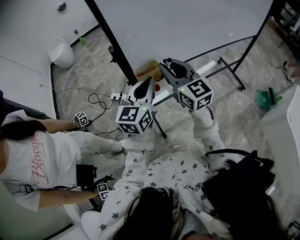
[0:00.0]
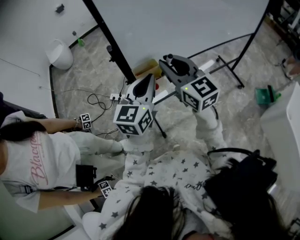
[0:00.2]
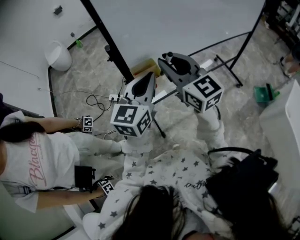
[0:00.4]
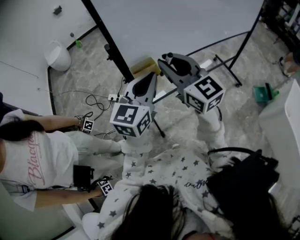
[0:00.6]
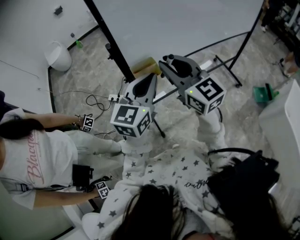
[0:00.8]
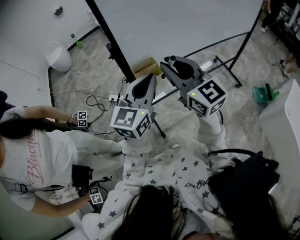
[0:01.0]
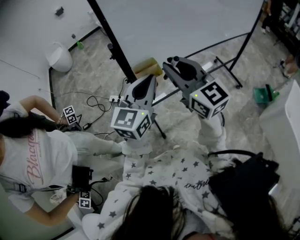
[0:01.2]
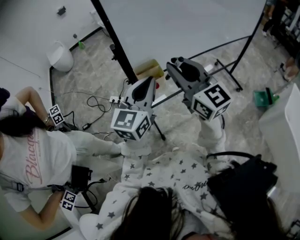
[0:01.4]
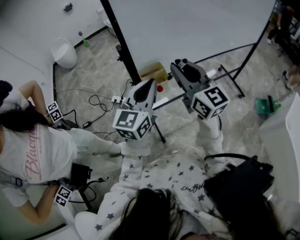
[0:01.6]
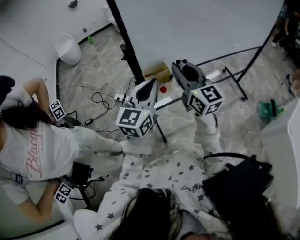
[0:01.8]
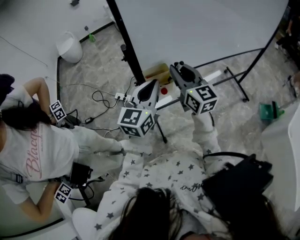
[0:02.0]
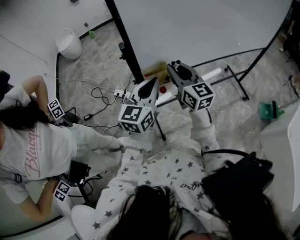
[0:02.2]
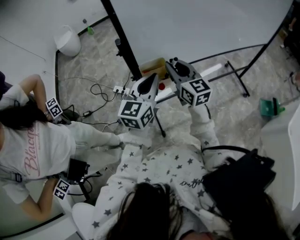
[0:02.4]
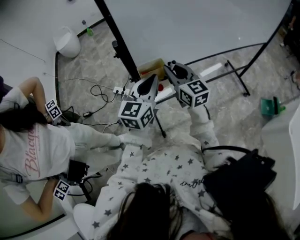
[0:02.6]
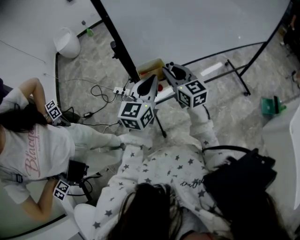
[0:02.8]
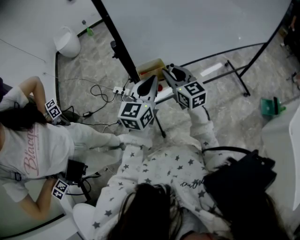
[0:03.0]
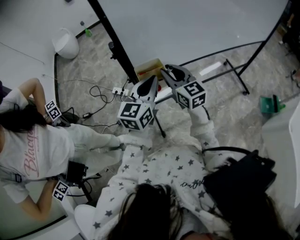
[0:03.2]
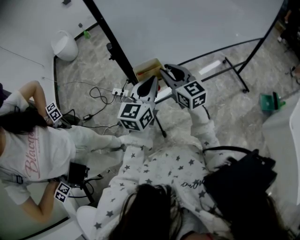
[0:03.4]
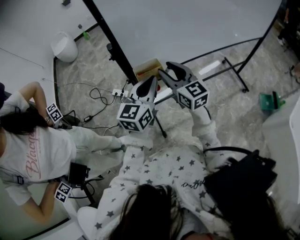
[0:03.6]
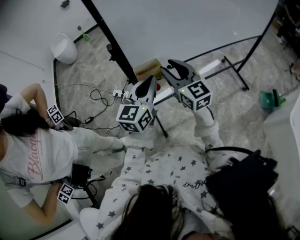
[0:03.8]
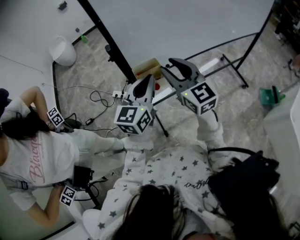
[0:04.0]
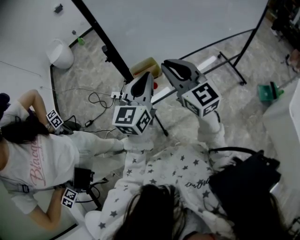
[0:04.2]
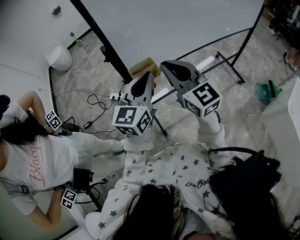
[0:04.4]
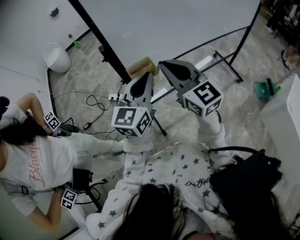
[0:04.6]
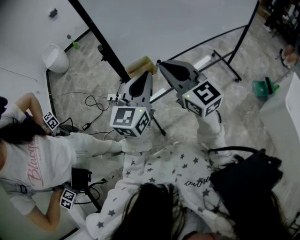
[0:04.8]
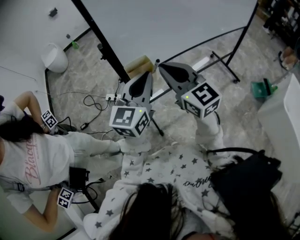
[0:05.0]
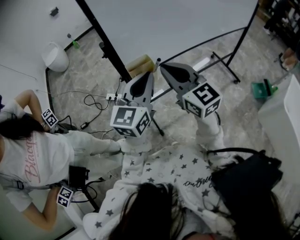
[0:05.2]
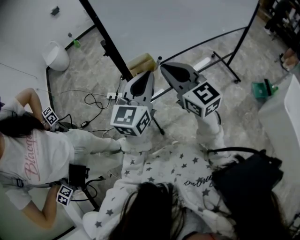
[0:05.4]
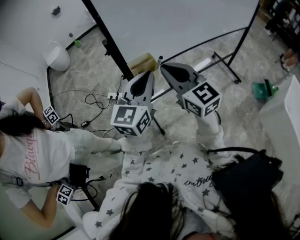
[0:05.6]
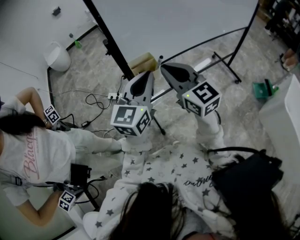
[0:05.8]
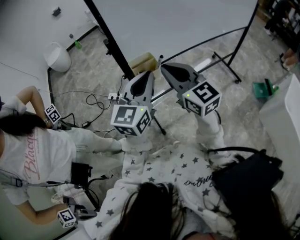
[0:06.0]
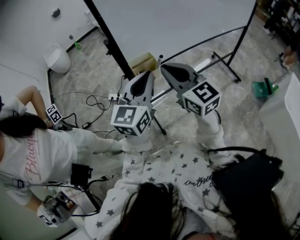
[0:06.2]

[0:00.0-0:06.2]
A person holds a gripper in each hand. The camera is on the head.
0:00.0 to 0:01.6: The right gripper travels upward by some 5 cm.
0:01.6 to 0:03.2: The left gripper travels downward by roughly 5 cm. Meanwhile the right gripper is displaced downward by some 15 cm.
0:03.2 to 0:04.6: The left gripper shifts some 5 cm upward. The right gripper shifts about 15 cm upward and backward.
0:04.6 to 0:06.2: The grippers stay close to where they were, moving slightly.

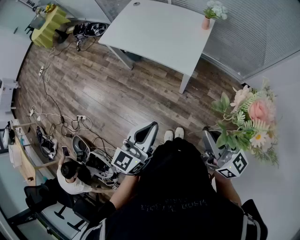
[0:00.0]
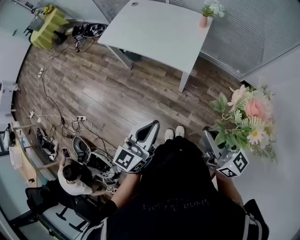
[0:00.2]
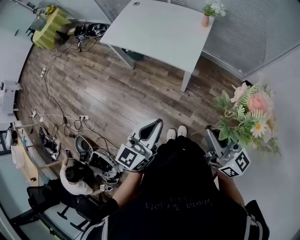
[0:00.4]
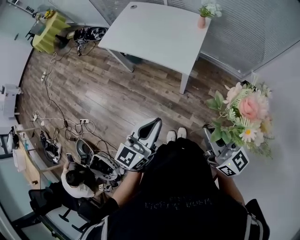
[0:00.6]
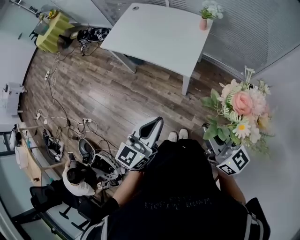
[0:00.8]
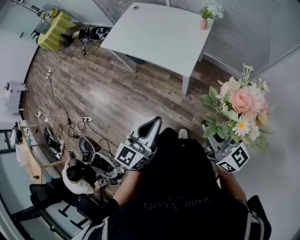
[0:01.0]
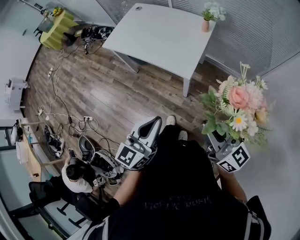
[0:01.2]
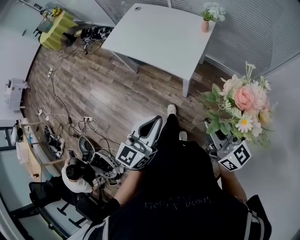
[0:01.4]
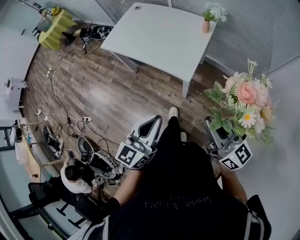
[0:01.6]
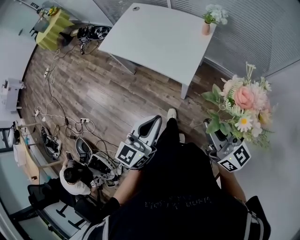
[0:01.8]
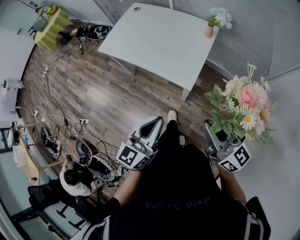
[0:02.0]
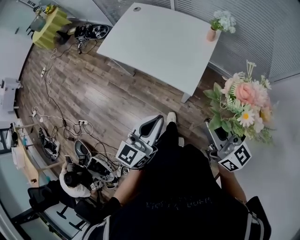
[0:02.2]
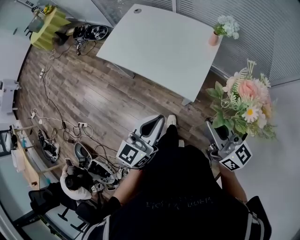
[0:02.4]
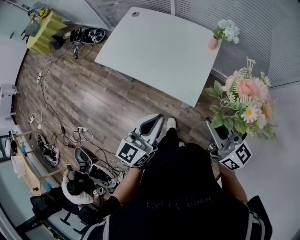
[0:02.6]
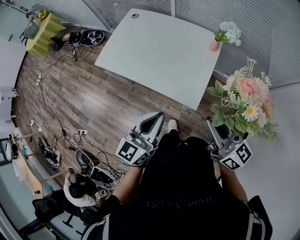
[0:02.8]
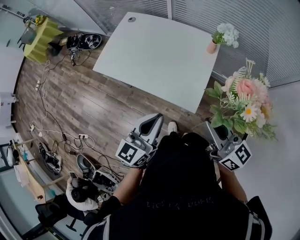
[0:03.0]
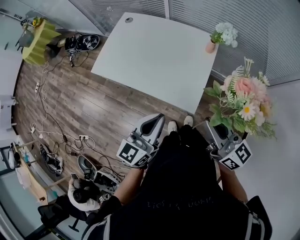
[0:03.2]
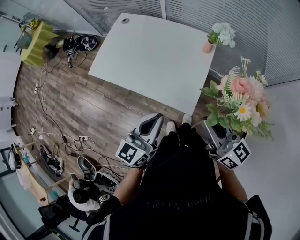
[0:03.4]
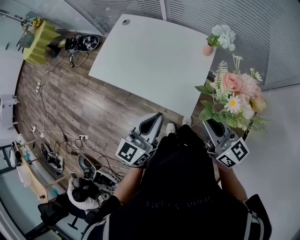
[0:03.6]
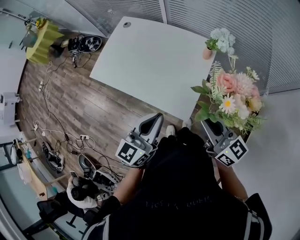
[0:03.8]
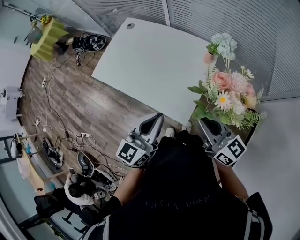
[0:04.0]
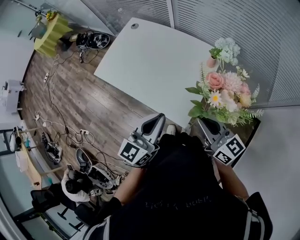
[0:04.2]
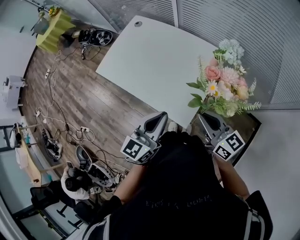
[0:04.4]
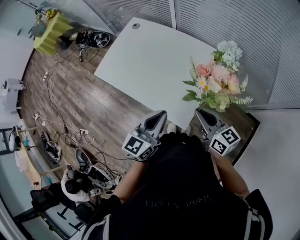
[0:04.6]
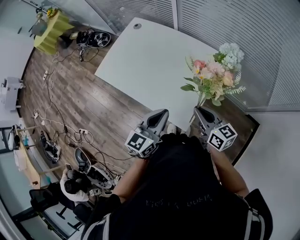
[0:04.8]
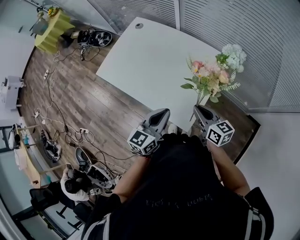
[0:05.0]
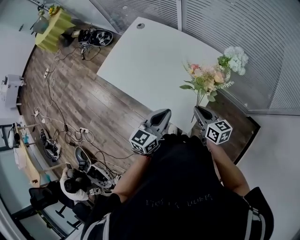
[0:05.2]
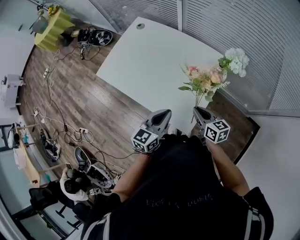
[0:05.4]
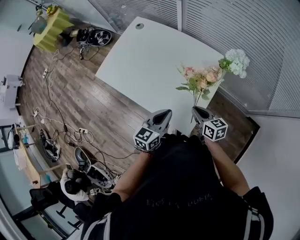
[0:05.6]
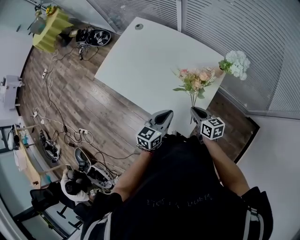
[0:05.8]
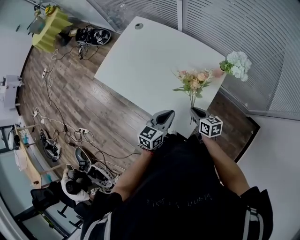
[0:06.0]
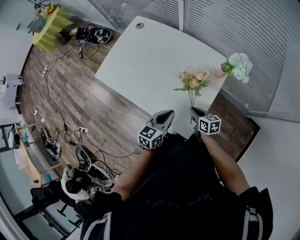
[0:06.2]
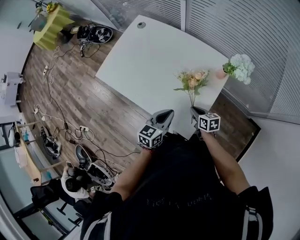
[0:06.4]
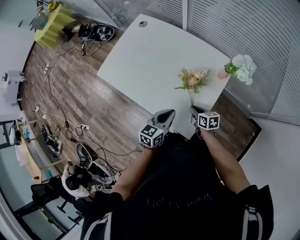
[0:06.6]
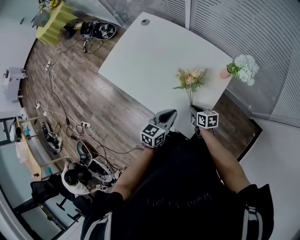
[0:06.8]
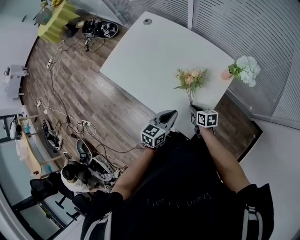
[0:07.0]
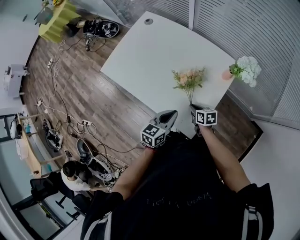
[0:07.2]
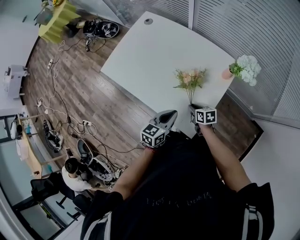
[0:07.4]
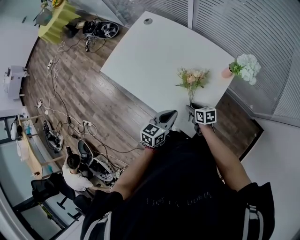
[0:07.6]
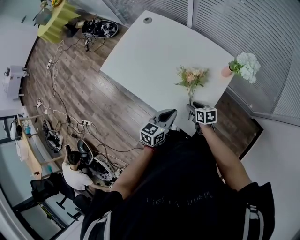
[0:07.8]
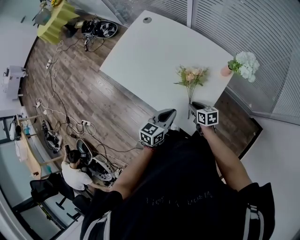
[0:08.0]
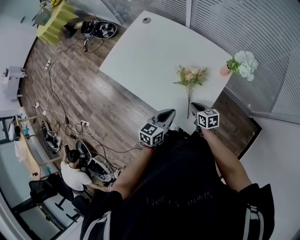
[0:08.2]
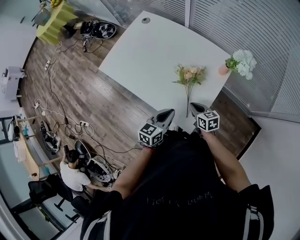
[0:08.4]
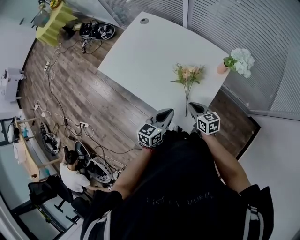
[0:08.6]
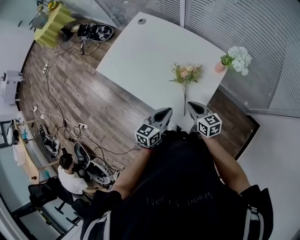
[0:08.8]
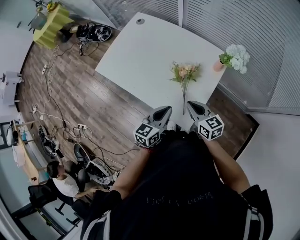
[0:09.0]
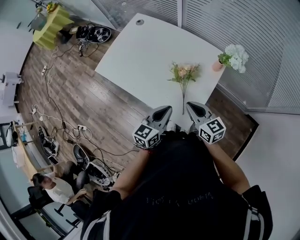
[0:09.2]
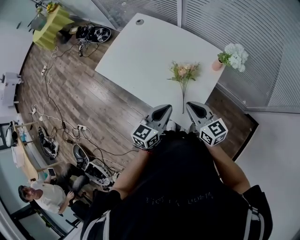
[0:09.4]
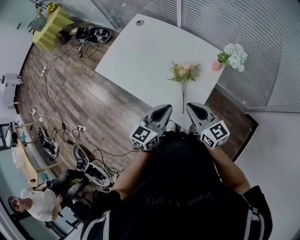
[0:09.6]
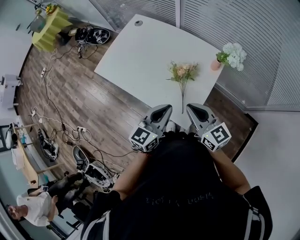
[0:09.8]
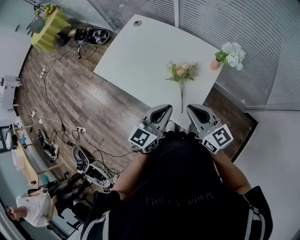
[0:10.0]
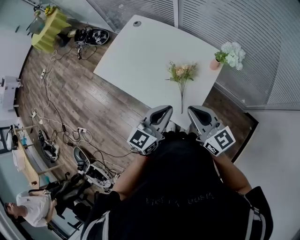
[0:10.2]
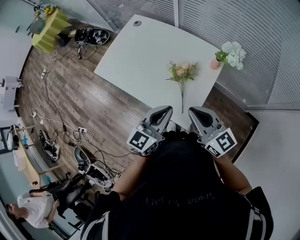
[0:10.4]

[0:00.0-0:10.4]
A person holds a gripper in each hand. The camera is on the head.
0:00.0 to 0:01.4: The two grippers go approximately 5 cm to the right.
0:01.4 to 0:03.0: Both grippers travel together forward, approximately 25 cm.
0:03.0 to 0:04.4: The left gripper shifts approximately 10 cm to the right and forward; the right gripper is displaced forward, downward and to the right by approximately 15 cm.
0:04.4 to 0:06.0: The left gripper moves downward and forward, about 20 cm, while the right gripper shifts roughly 25 cm downward, and changes its angle by roughly 30 degrees.
0:06.0 to 0:07.4: The right gripper goes approximately 10 cm downward.
0:07.4 to 0:09.0: The right gripper goes some 20 cm upward, turns by approximately 30 degrees, and opens, then closes once more; the left gripper moves approximately 5 cm.
0:09.0 to 0:10.4: The two grippers go some 15 cm upward. The right gripper changes its angle by about 20 degrees.

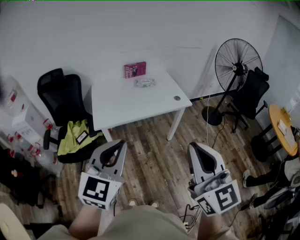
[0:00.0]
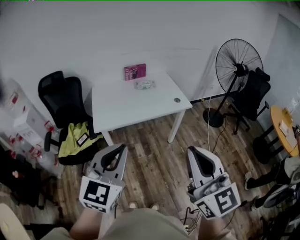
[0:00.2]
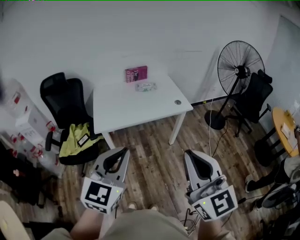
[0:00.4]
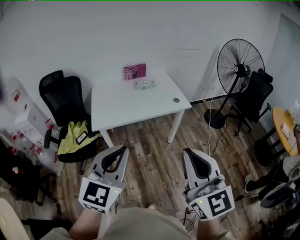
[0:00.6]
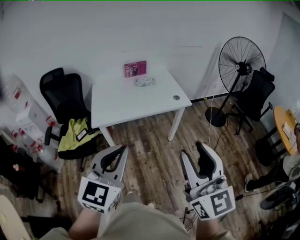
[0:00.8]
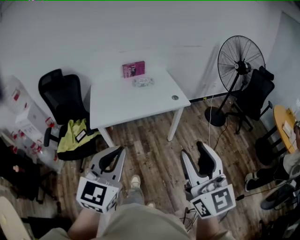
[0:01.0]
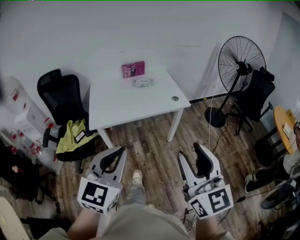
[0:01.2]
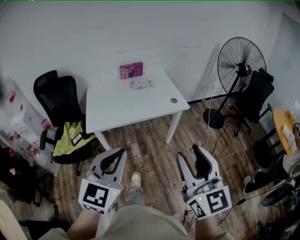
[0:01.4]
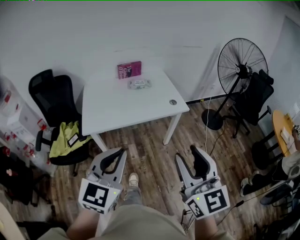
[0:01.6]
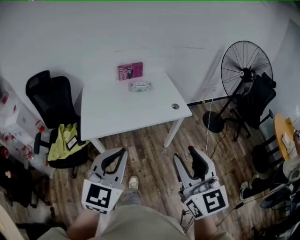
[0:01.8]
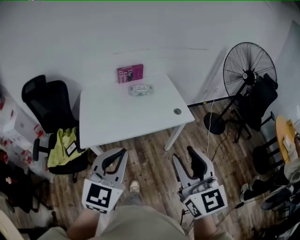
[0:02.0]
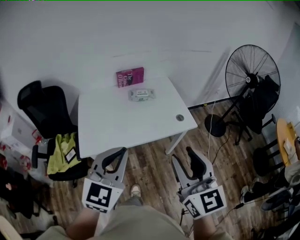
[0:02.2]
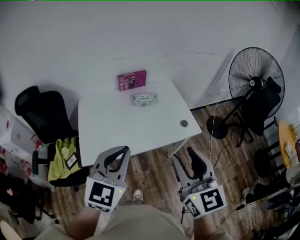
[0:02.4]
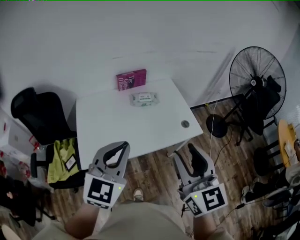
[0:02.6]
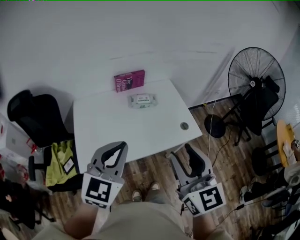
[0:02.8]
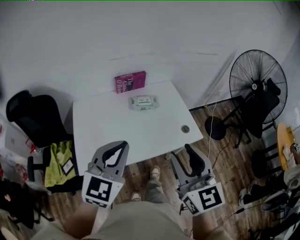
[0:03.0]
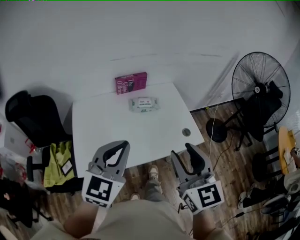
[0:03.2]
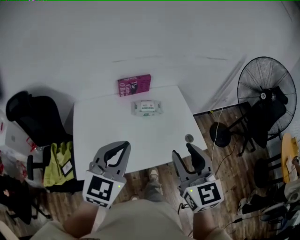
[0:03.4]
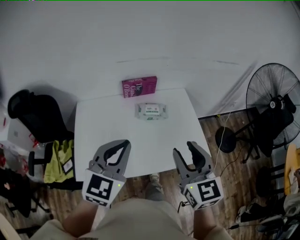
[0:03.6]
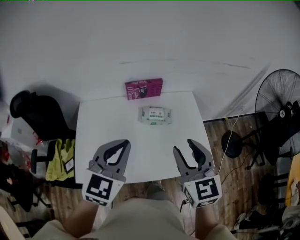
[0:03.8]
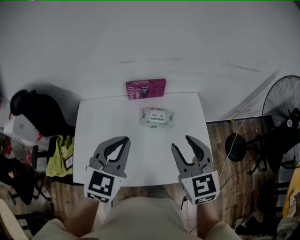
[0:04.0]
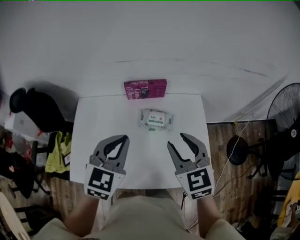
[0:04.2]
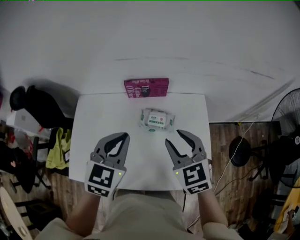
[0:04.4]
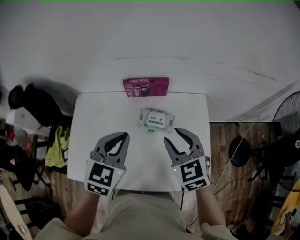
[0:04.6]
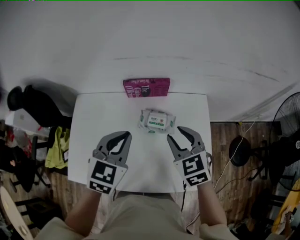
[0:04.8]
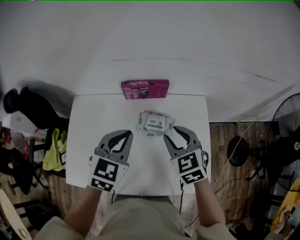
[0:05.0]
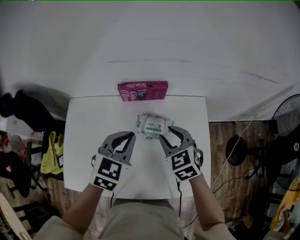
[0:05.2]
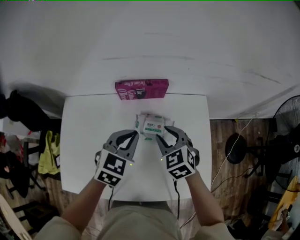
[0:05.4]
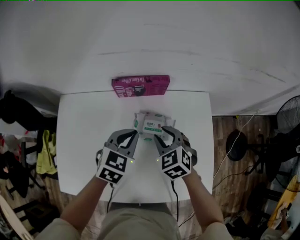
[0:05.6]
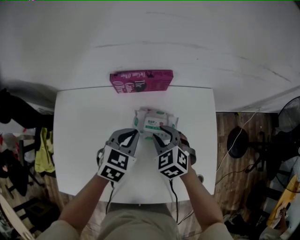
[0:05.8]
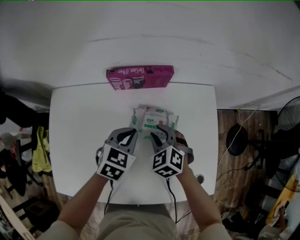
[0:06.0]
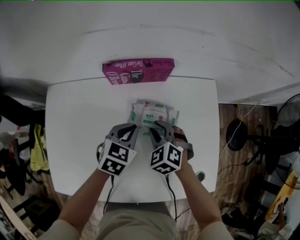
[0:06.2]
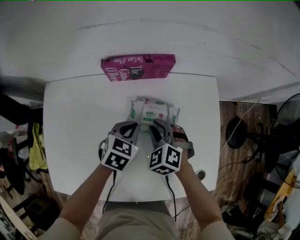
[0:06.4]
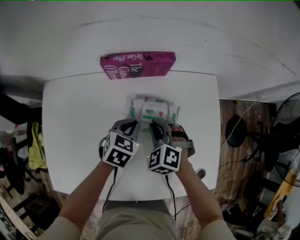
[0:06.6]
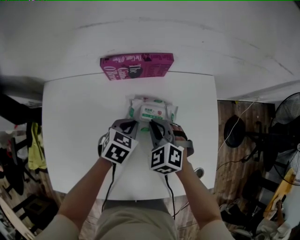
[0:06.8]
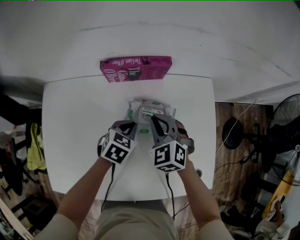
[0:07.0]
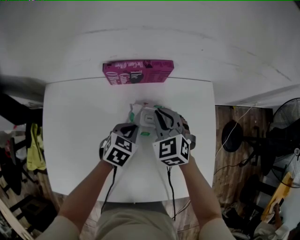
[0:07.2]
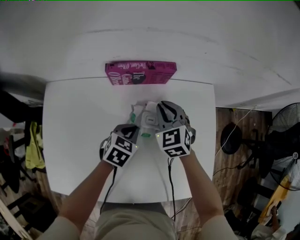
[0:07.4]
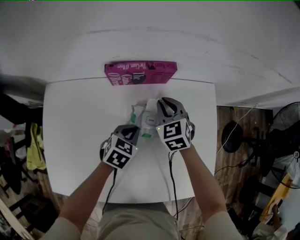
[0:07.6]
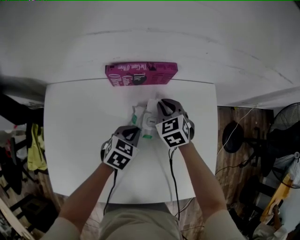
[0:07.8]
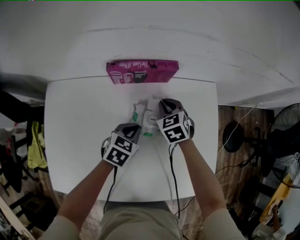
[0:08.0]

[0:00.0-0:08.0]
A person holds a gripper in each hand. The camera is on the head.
0:00.0 to 0:01.6: The left gripper is displaced to the right and forward by some 10 cm. Meanwhile the right gripper moves forward, to the right and downward, about 15 cm, and opens.
0:01.6 to 0:03.2: Both grippers move forward, roughly 35 cm.
0:03.2 to 0:04.8: The left gripper goes some 30 cm forward, and changes its angle by about 30 degrees, while the right gripper heads forward and downward, covering some 40 cm, and changes its angle by some 40 degrees.
0:04.8 to 0:06.4: Both grippers move downward, approximately 25 cm. The right gripper turns by roughly 30 degrees. The left gripper turns by about 20 degrees.
0:06.4 to 0:08.0: The right gripper goes some 10 cm forward, and changes its angle by approximately 20 degrees.
